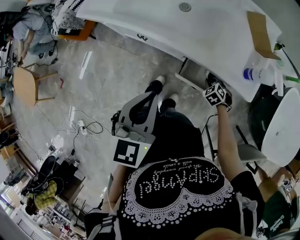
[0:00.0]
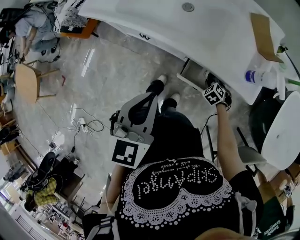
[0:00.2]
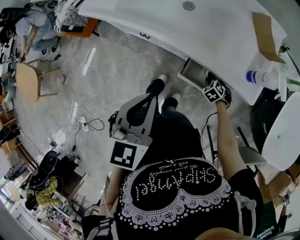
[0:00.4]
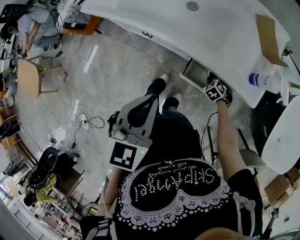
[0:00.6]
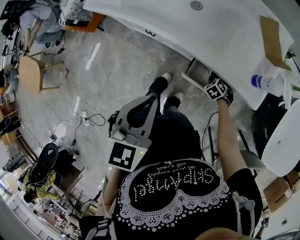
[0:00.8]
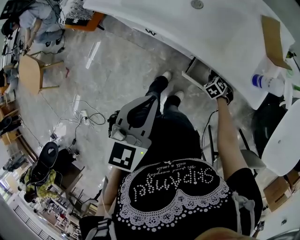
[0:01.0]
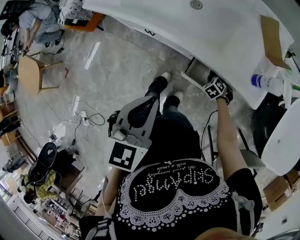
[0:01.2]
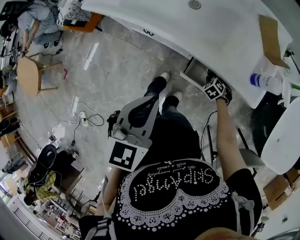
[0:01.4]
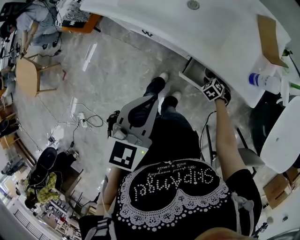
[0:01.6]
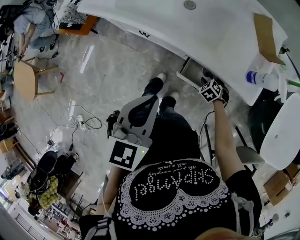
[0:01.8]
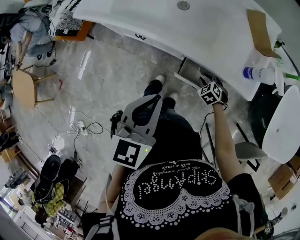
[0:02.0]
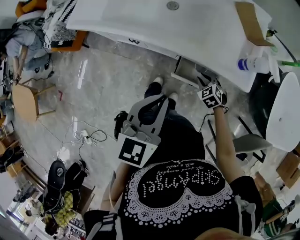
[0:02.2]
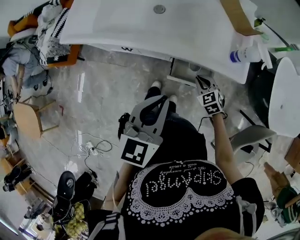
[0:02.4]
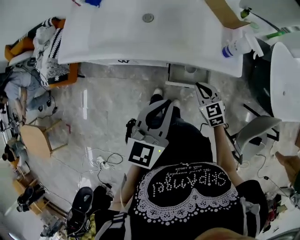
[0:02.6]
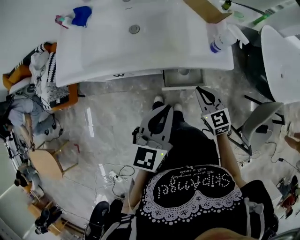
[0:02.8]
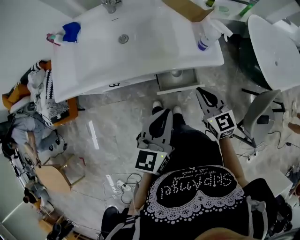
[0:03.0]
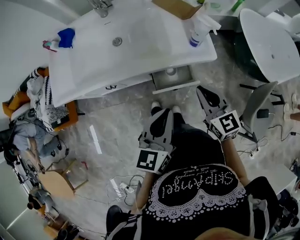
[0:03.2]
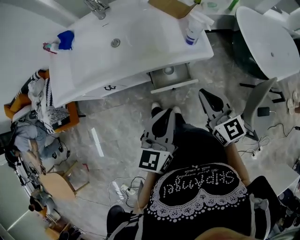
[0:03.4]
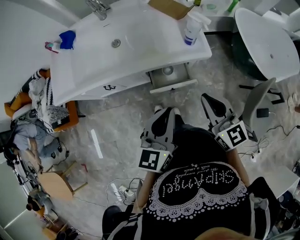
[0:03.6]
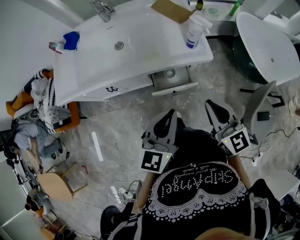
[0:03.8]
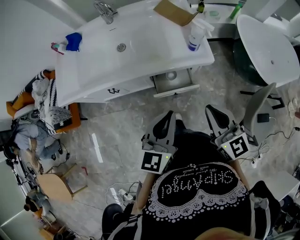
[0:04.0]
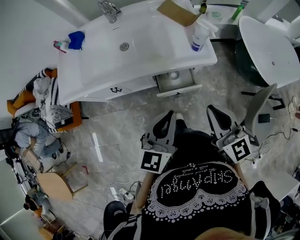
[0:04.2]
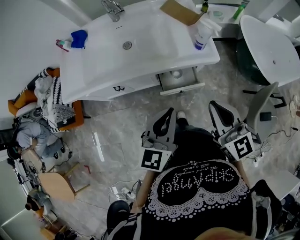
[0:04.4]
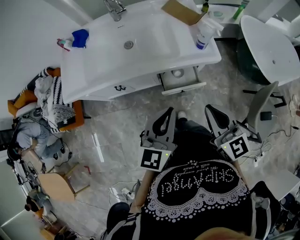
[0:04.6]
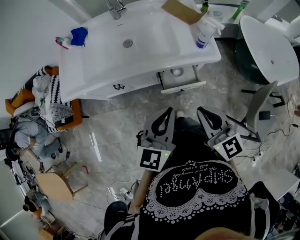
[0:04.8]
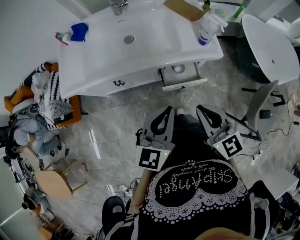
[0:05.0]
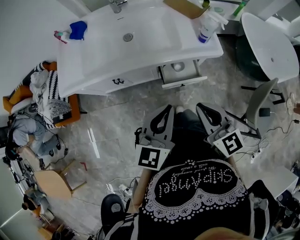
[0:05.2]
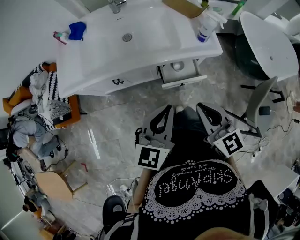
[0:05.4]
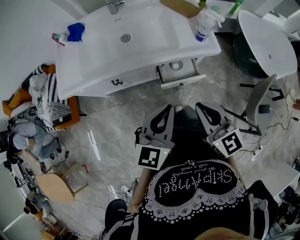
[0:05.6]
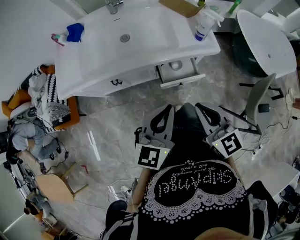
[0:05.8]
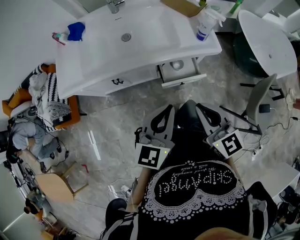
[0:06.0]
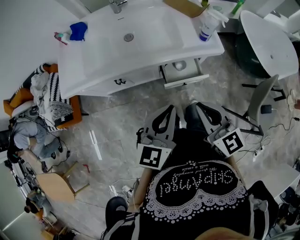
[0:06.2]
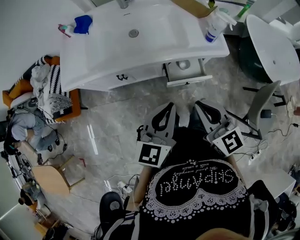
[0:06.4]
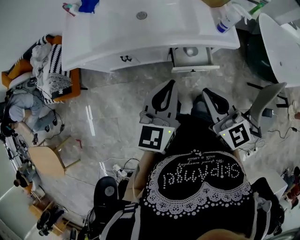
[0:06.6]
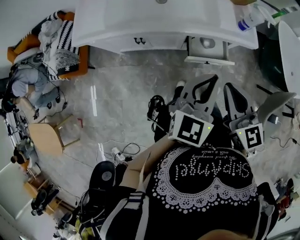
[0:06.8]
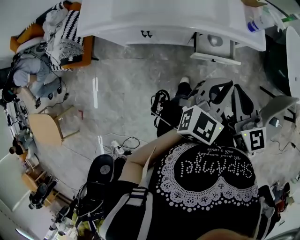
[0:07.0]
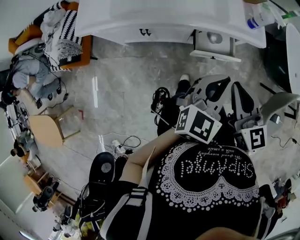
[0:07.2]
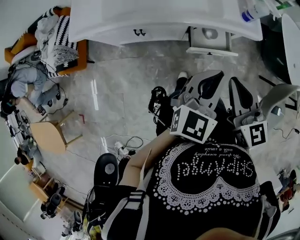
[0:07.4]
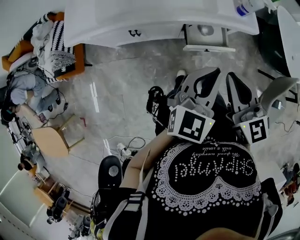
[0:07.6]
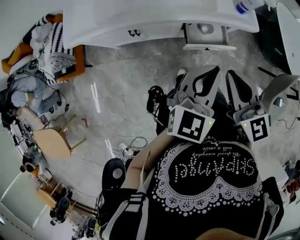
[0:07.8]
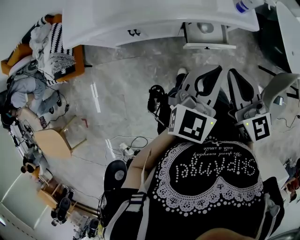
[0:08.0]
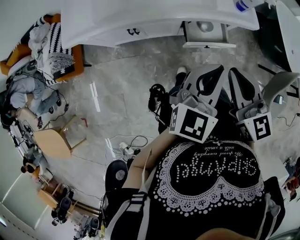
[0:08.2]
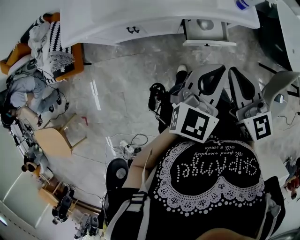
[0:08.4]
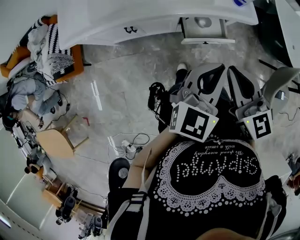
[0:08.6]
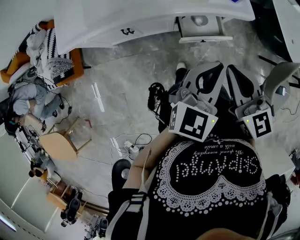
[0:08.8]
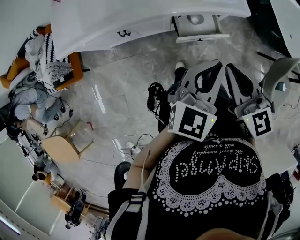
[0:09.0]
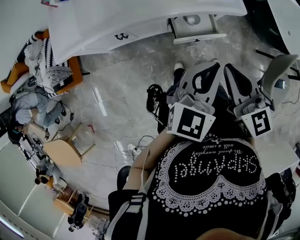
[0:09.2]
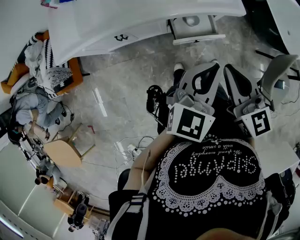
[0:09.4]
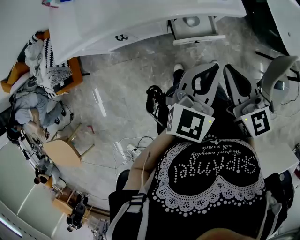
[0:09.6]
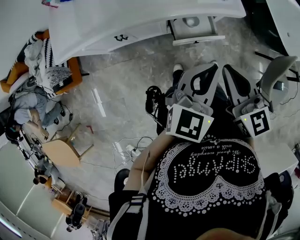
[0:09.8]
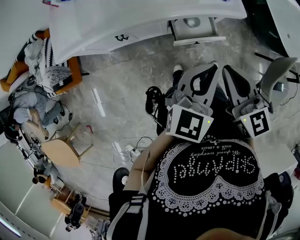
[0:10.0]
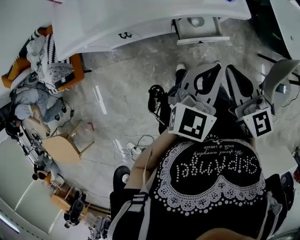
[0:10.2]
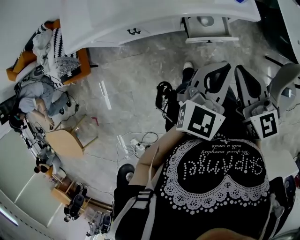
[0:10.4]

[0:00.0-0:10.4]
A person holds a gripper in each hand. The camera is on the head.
0:00.0 to 0:01.4: The right gripper heads downward, covering some 5 cm.
0:01.4 to 0:03.0: The right gripper moves upward, roughly 35 cm, and tilts its fingers approximately 50 degrees upward. Meanwhile the left gripper moves roughly 10 cm, and turns by approximately 30 degrees.
0:03.0 to 0:04.4: The right gripper is displaced upward and backward by about 15 cm. The left gripper changes place by roughly 5 cm.
0:04.4 to 0:06.0: The right gripper moves to the left, roughly 10 cm.
0:07.4 to 0:10.4: The grippers make only small movements.

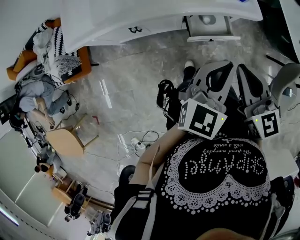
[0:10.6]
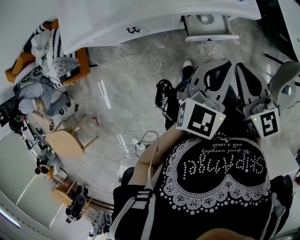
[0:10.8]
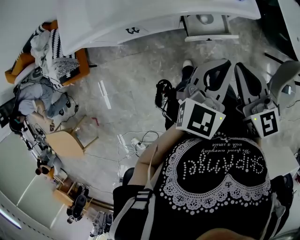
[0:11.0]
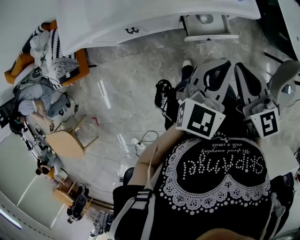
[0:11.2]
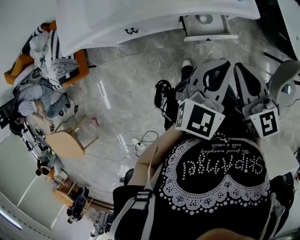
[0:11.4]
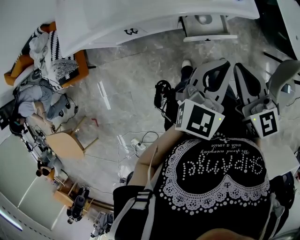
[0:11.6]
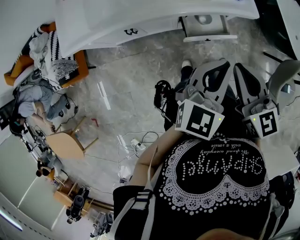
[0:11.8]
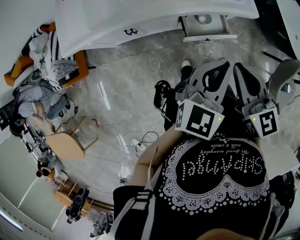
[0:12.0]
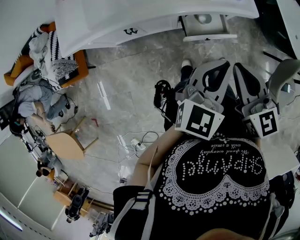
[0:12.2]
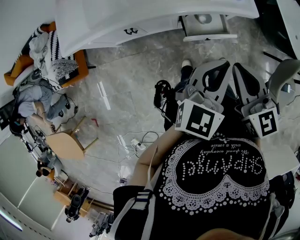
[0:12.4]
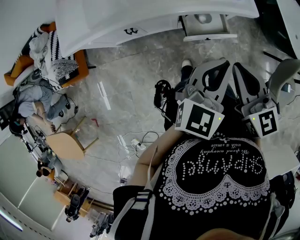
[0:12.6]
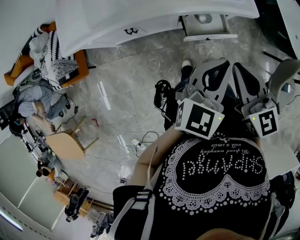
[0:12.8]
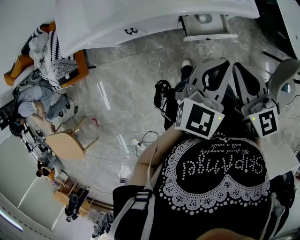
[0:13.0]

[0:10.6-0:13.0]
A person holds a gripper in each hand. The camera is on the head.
0:10.6 to 0:13.0: Both grippers stay about where they are.

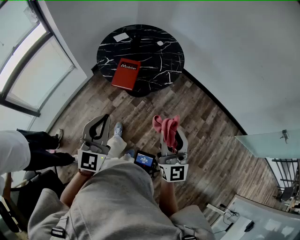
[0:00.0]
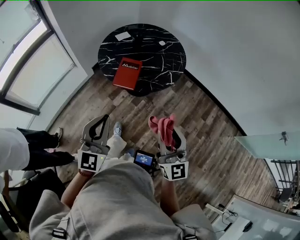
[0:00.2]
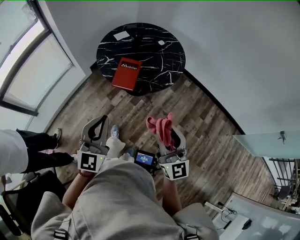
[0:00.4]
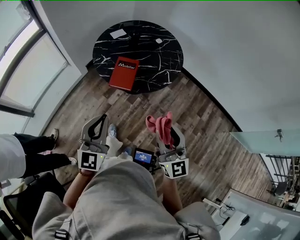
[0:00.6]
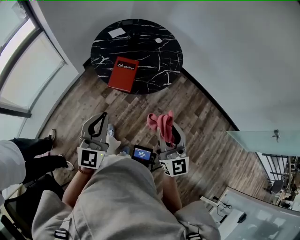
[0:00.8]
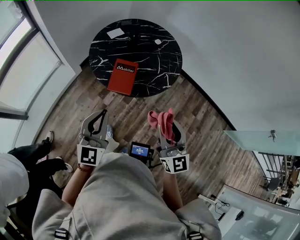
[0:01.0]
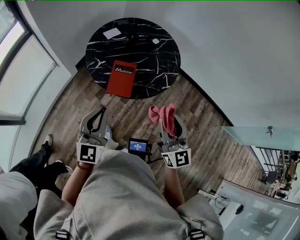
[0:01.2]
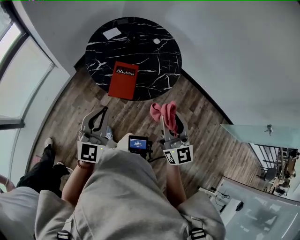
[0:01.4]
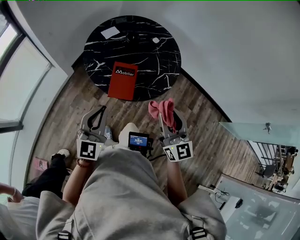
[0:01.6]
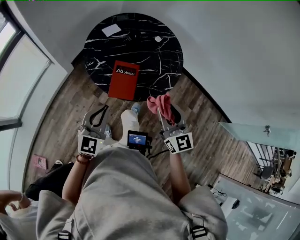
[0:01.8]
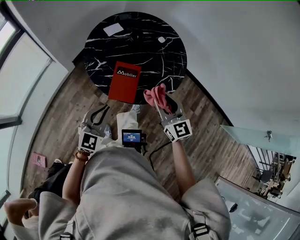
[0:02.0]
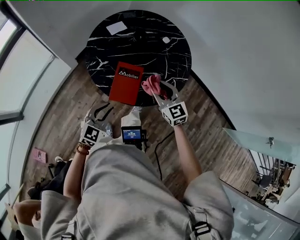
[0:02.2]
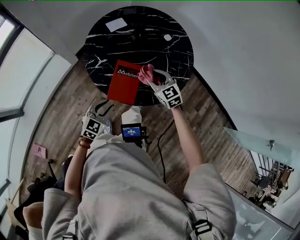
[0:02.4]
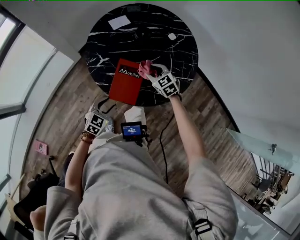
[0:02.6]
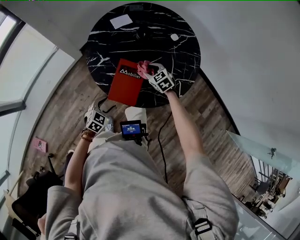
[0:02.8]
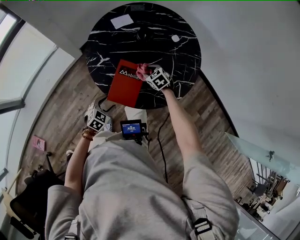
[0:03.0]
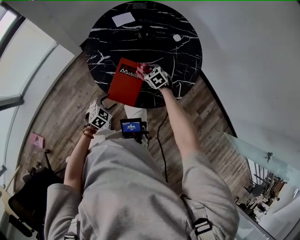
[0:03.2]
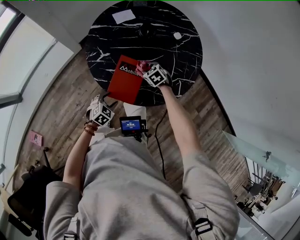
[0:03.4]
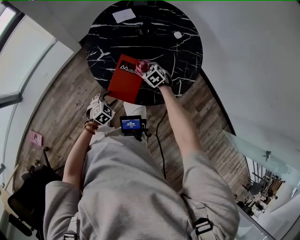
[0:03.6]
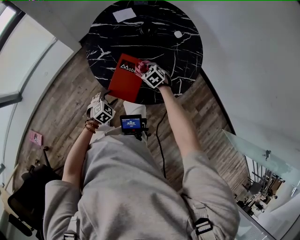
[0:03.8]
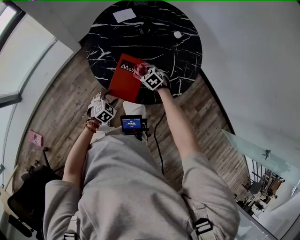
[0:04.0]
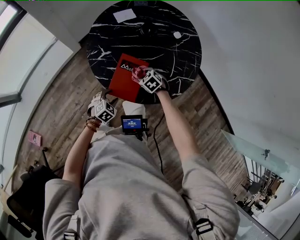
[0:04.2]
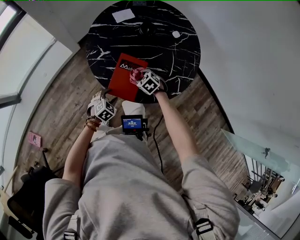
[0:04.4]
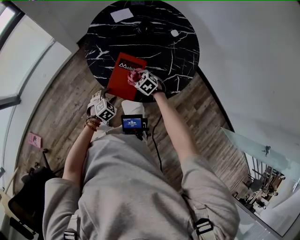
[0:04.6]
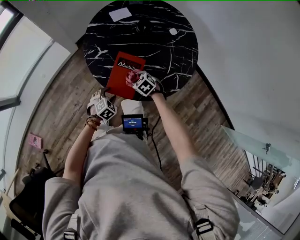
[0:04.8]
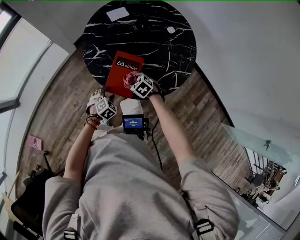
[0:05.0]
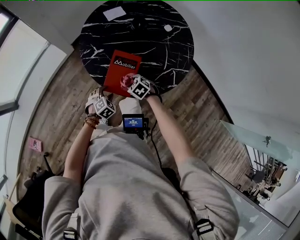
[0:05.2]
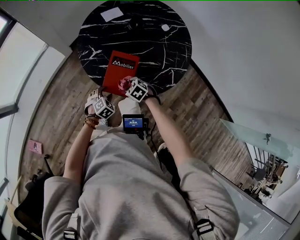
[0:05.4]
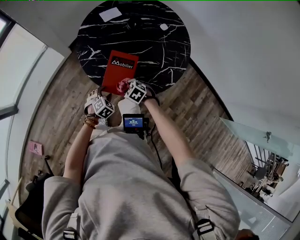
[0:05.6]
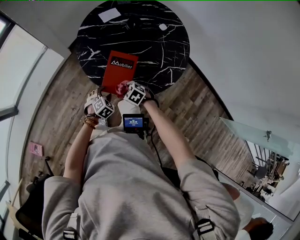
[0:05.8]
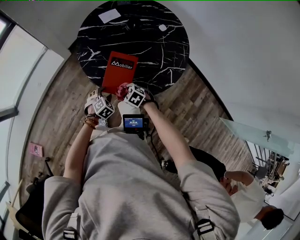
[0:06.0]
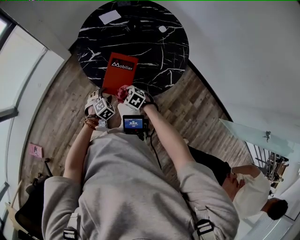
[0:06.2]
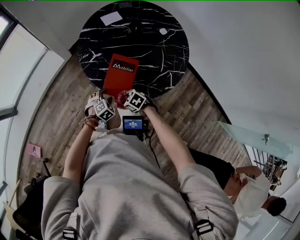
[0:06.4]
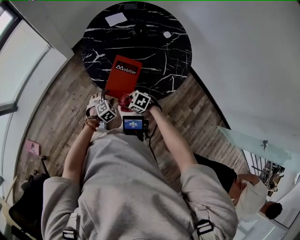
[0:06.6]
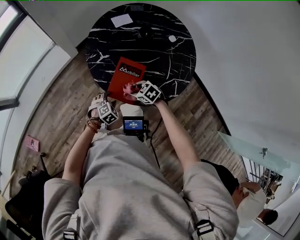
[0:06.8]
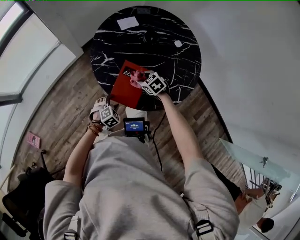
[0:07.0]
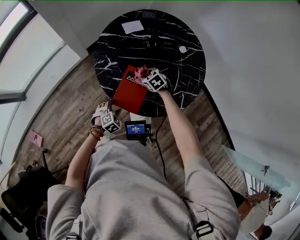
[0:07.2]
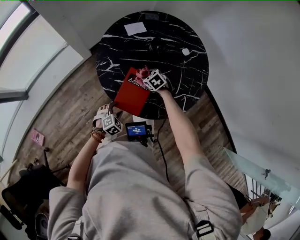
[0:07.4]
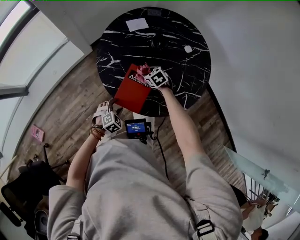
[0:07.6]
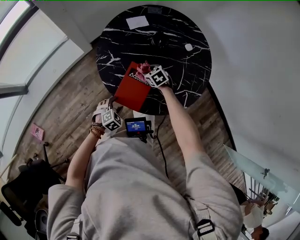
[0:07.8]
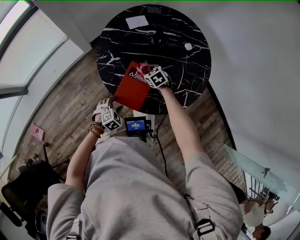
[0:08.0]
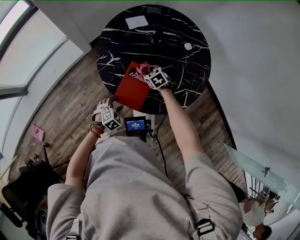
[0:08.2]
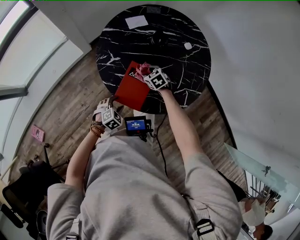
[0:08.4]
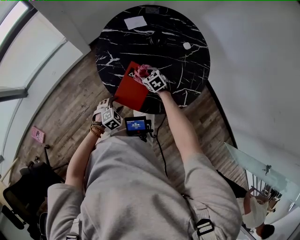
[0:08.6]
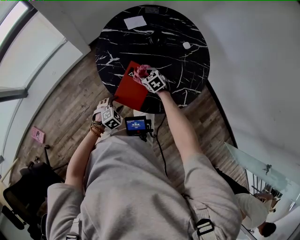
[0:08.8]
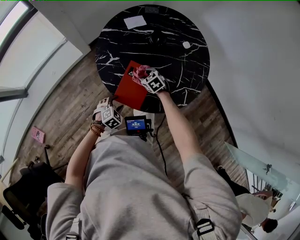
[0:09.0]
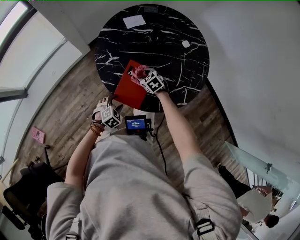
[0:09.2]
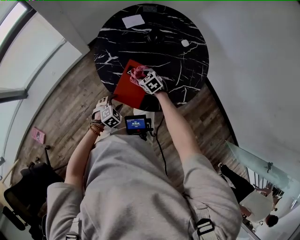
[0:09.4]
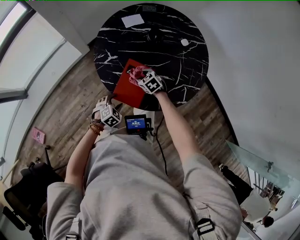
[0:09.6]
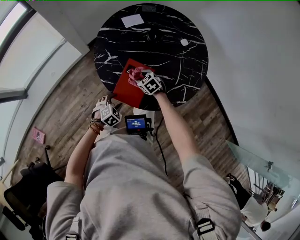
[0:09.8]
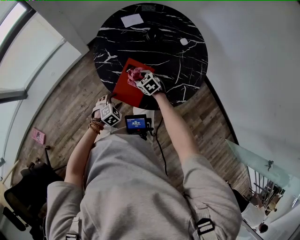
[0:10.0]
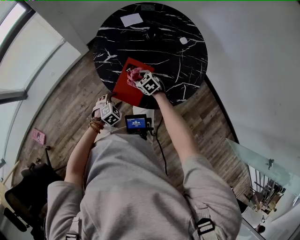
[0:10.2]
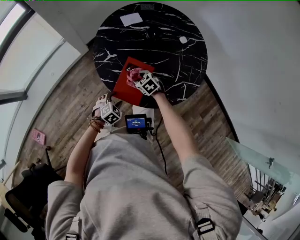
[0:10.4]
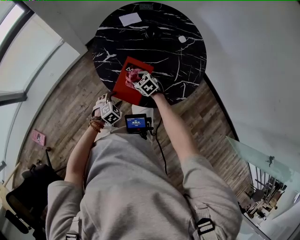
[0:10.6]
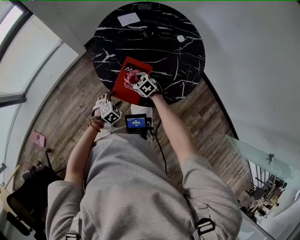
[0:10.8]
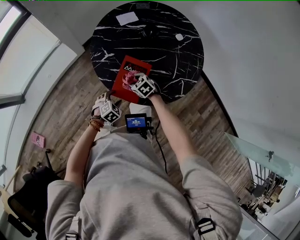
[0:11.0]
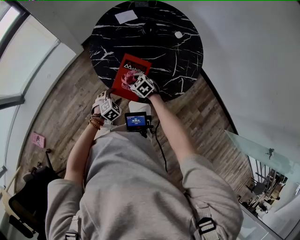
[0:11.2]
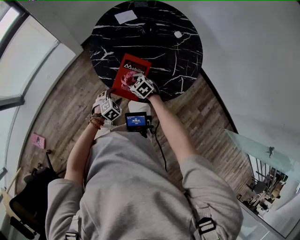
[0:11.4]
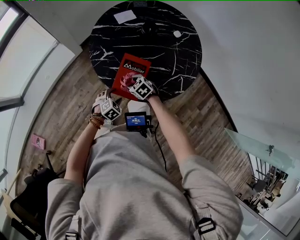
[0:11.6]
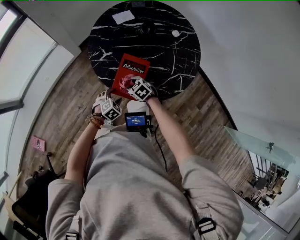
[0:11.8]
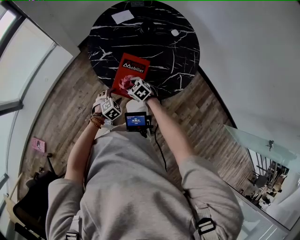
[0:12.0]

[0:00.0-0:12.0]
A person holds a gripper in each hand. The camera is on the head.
0:00.0 to 0:01.6: The left gripper is displaced forward, to the left and downward by about 25 cm; the right gripper is displaced forward and to the left by roughly 25 cm.
0:01.6 to 0:03.0: The left gripper shifts some 35 cm downward, points its fingers approximately 40 degrees further downward, and opens its fingers. Meanwhile the right gripper shifts roughly 50 cm downward and forward, and points its fingers approximately 60 degrees further downward.
0:03.0 to 0:04.4: The right gripper shifts roughly 5 cm backward.
0:04.4 to 0:06.0: The right gripper moves backward and to the left, roughly 10 cm.
0:06.0 to 0:07.6: The right gripper shifts by roughly 20 cm.
0:07.6 to 0:09.0: There are only small adjustments of the grippers.
0:09.0 to 0:10.4: The grippers stay close to where they were, moving slightly.
0:10.4 to 0:12.0: The right gripper travels backward by approximately 5 cm.
